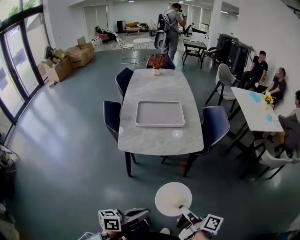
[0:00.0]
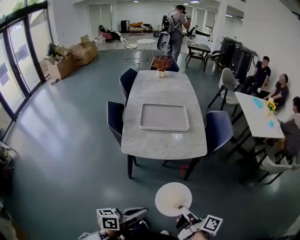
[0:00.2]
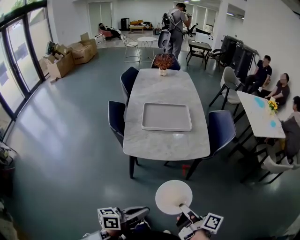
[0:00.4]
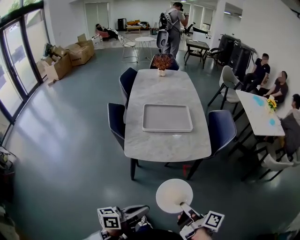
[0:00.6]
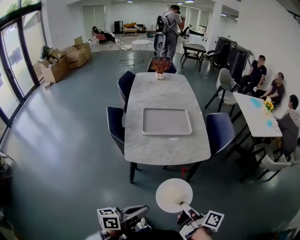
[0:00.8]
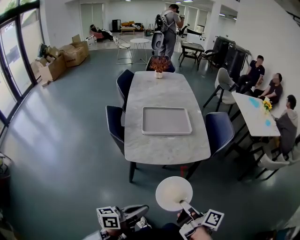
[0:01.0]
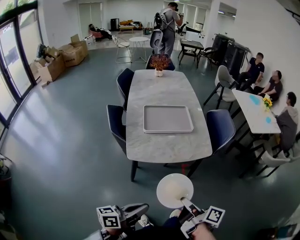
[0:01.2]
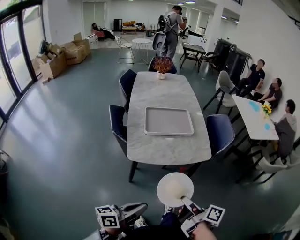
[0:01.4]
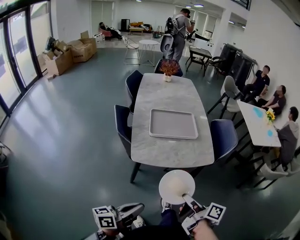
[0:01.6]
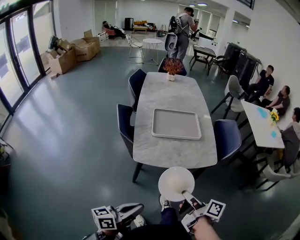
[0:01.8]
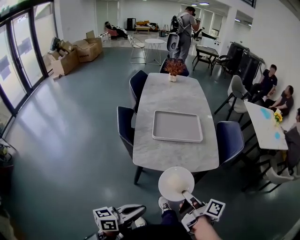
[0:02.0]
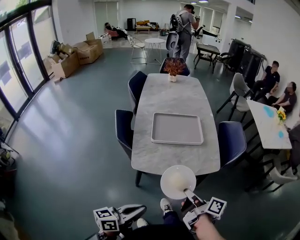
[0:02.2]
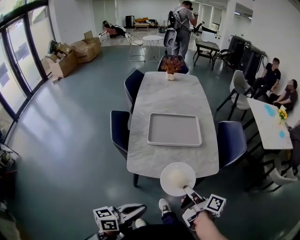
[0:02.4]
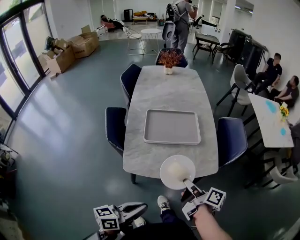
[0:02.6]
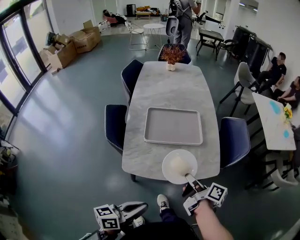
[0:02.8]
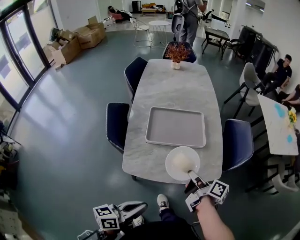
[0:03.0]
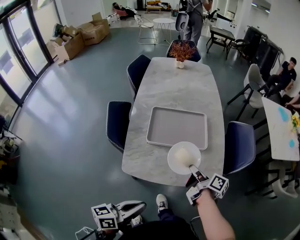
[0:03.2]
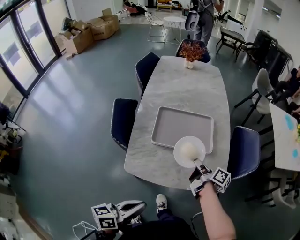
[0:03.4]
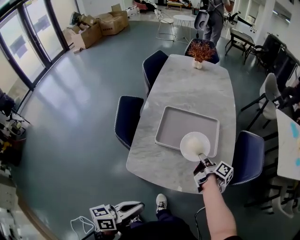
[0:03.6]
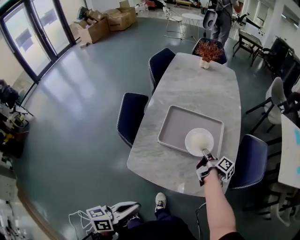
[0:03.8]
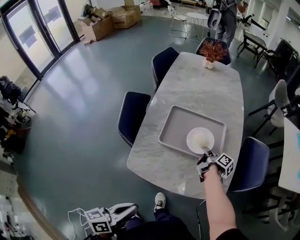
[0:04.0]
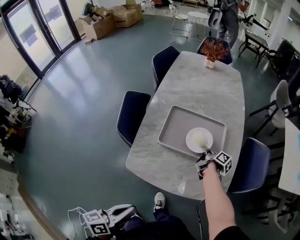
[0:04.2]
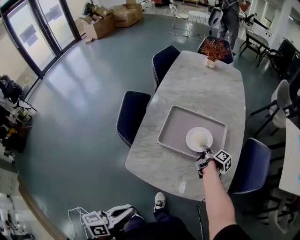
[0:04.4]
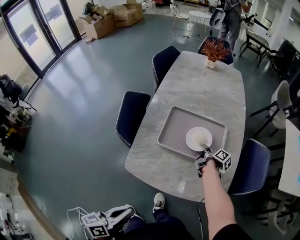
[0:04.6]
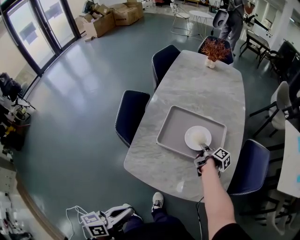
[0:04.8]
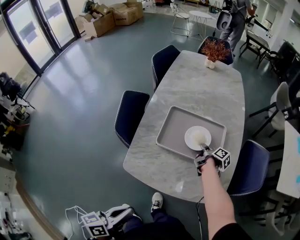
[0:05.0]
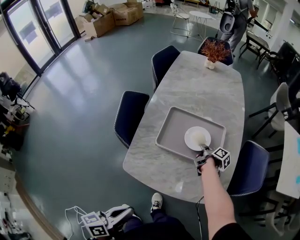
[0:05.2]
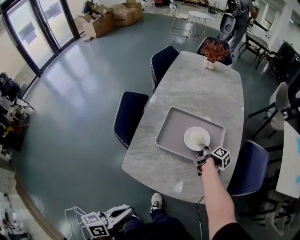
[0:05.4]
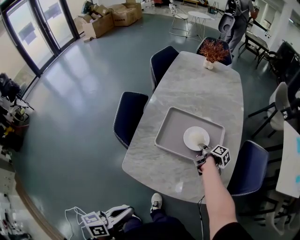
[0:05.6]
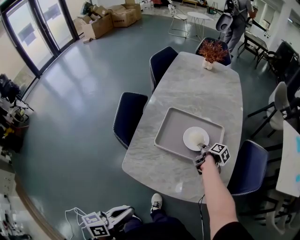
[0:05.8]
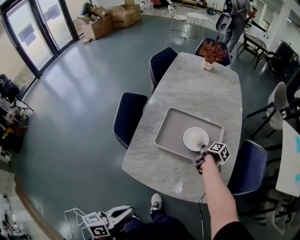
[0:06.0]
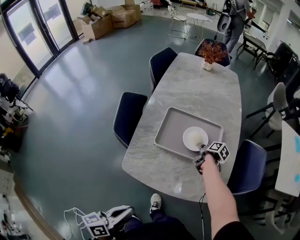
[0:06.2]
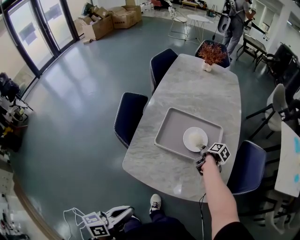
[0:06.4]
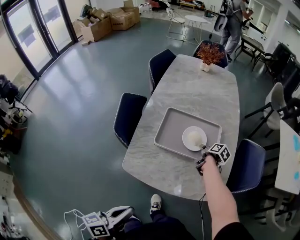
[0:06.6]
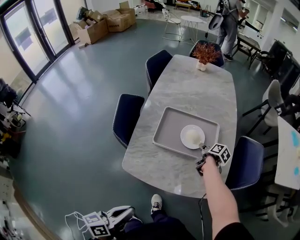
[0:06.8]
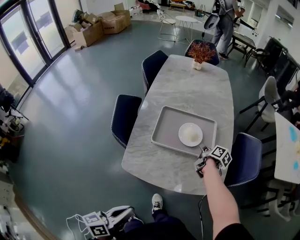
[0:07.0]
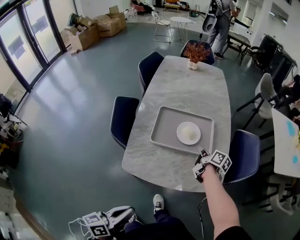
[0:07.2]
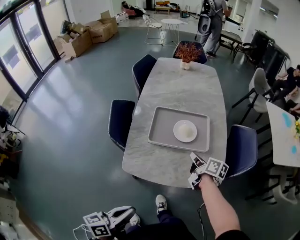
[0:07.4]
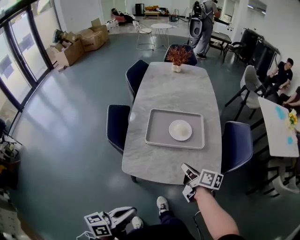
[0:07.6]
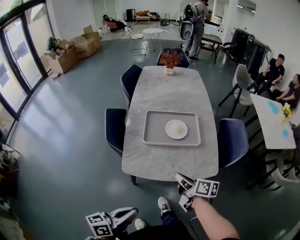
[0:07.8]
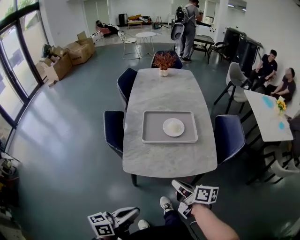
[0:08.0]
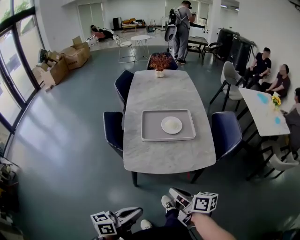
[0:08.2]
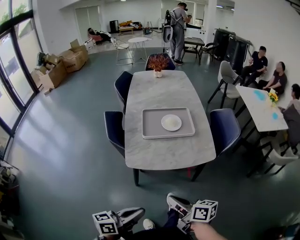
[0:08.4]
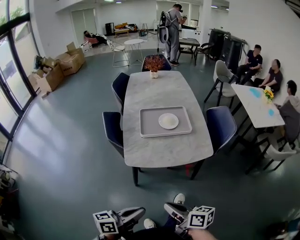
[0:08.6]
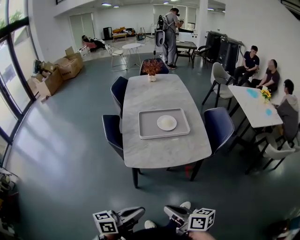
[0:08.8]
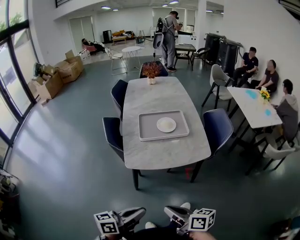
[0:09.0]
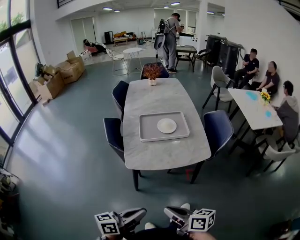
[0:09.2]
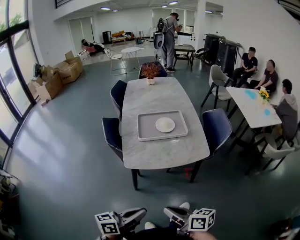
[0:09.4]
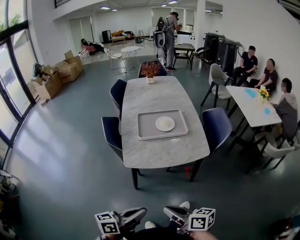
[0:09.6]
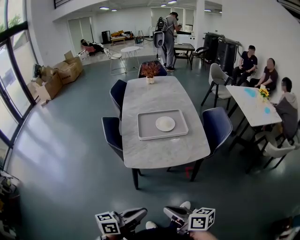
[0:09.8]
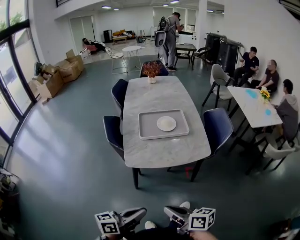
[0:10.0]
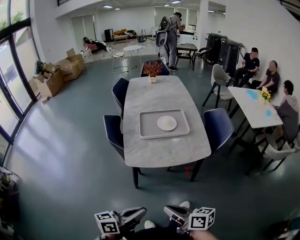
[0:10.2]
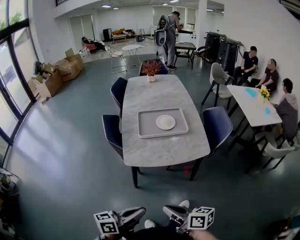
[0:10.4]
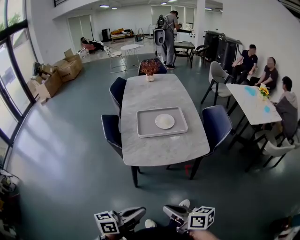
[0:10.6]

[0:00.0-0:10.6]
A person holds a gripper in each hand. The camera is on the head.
0:00.0 to 0:01.6: The left gripper shifts by some 15 cm.
0:01.6 to 0:03.0: The left gripper ends up roughly 15 cm from where it was.
0:03.0 to 0:04.6: The left gripper rotates about 30 degrees.
0:06.0 to 0:07.6: The left gripper ends up about 5 cm from where it was.
0:07.6 to 0:09.0: The left gripper shifts by roughly 15 cm.

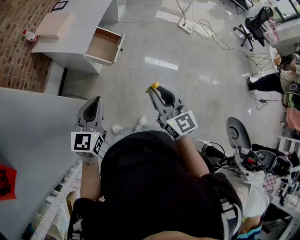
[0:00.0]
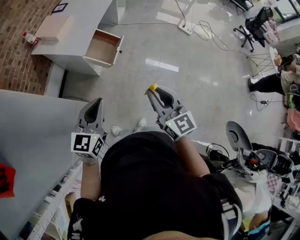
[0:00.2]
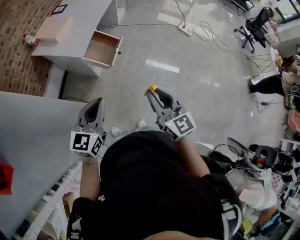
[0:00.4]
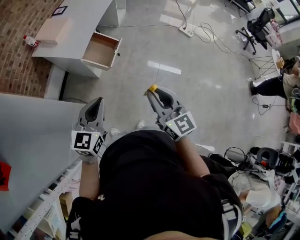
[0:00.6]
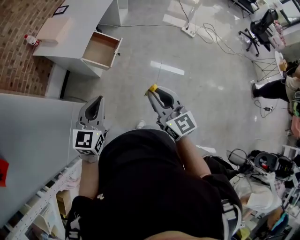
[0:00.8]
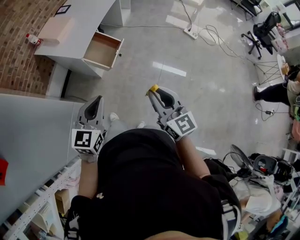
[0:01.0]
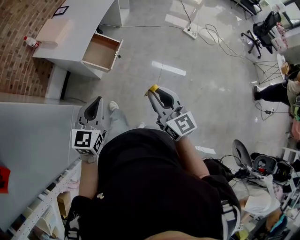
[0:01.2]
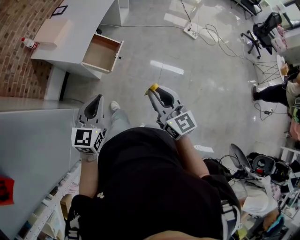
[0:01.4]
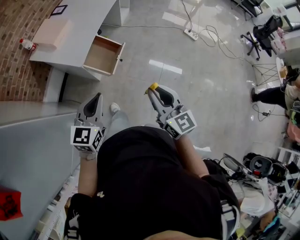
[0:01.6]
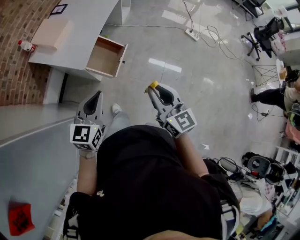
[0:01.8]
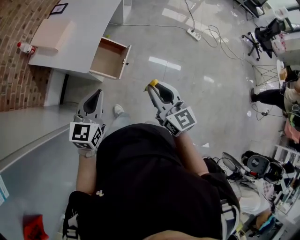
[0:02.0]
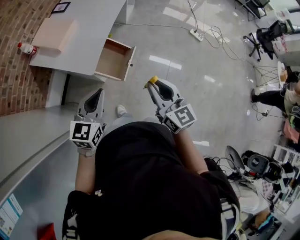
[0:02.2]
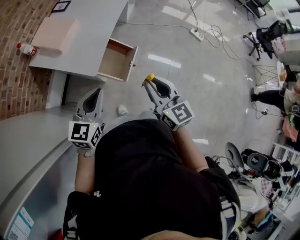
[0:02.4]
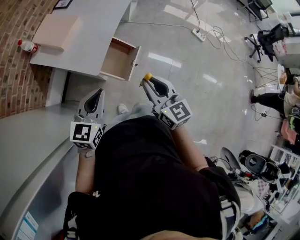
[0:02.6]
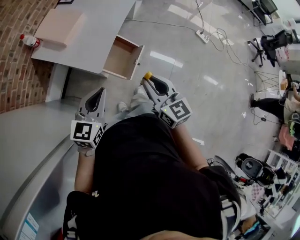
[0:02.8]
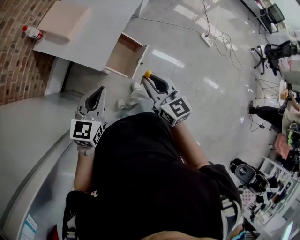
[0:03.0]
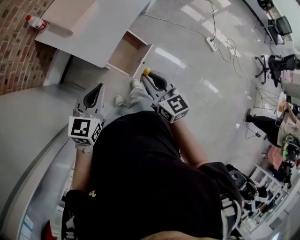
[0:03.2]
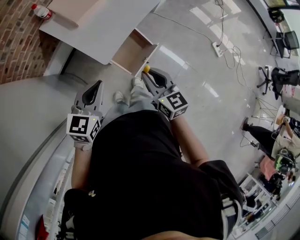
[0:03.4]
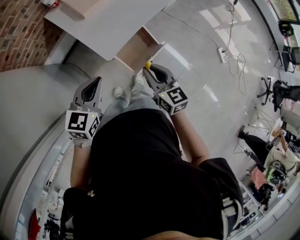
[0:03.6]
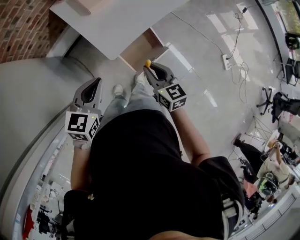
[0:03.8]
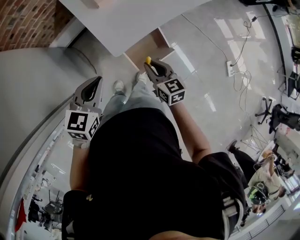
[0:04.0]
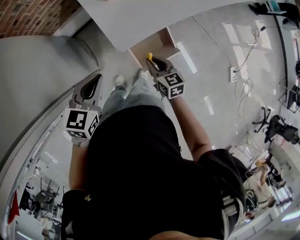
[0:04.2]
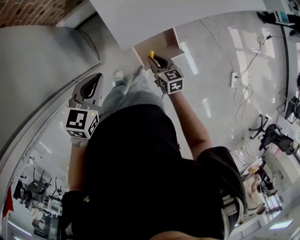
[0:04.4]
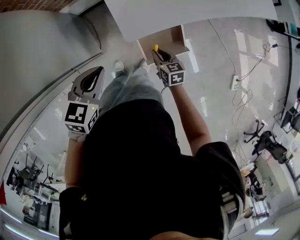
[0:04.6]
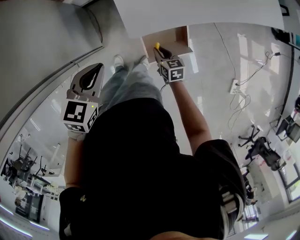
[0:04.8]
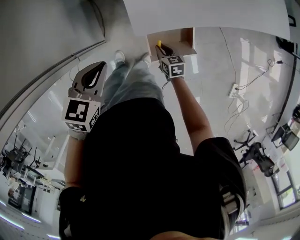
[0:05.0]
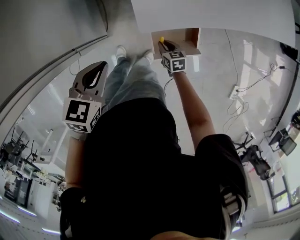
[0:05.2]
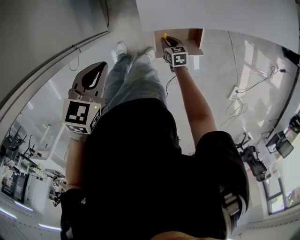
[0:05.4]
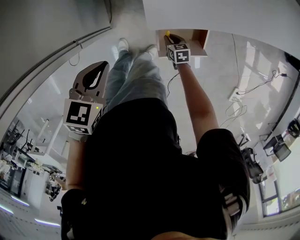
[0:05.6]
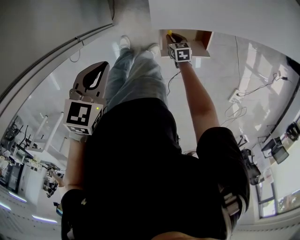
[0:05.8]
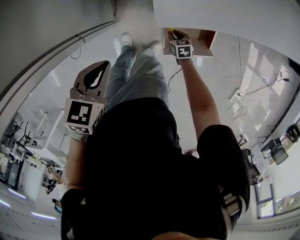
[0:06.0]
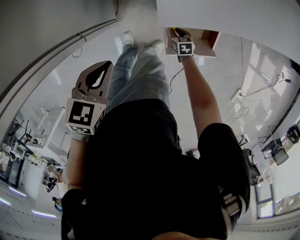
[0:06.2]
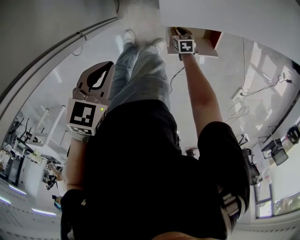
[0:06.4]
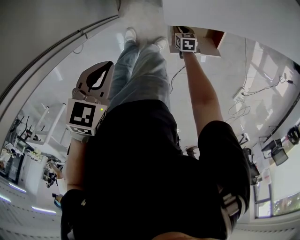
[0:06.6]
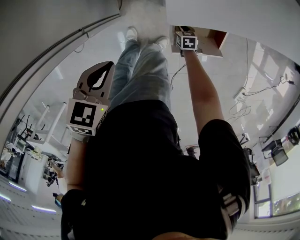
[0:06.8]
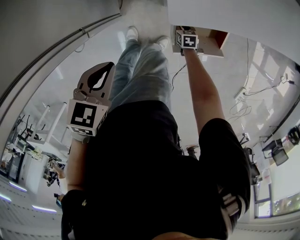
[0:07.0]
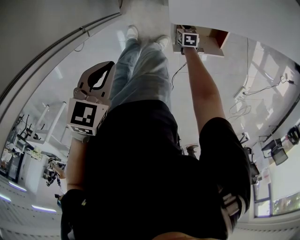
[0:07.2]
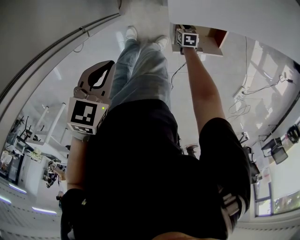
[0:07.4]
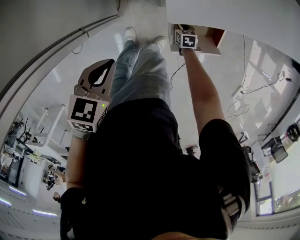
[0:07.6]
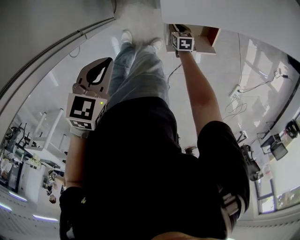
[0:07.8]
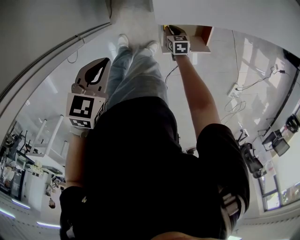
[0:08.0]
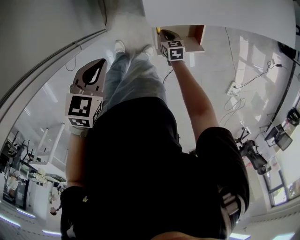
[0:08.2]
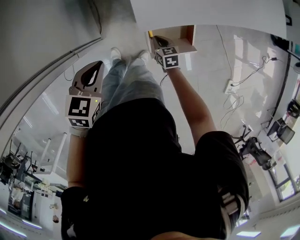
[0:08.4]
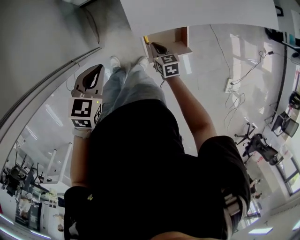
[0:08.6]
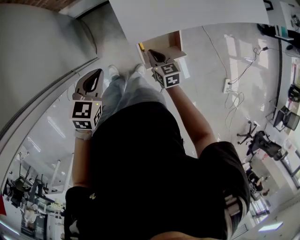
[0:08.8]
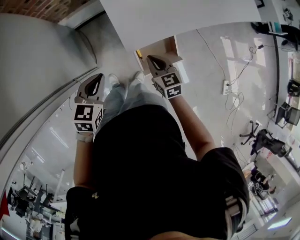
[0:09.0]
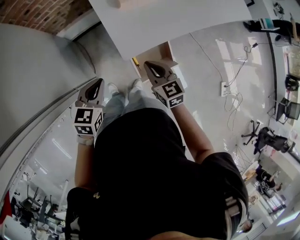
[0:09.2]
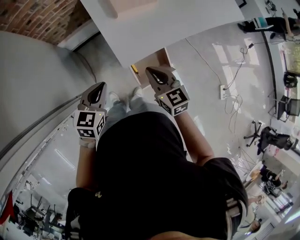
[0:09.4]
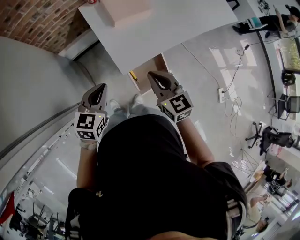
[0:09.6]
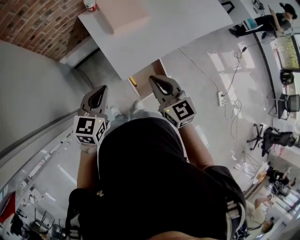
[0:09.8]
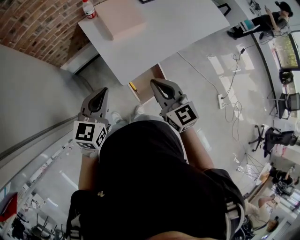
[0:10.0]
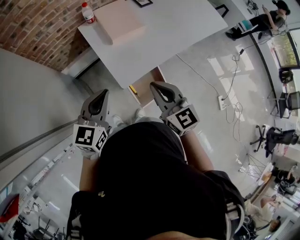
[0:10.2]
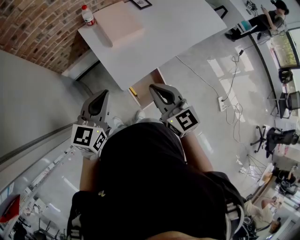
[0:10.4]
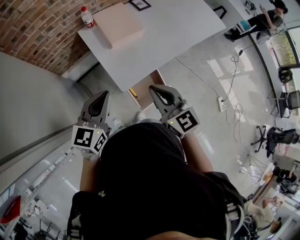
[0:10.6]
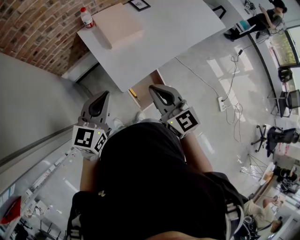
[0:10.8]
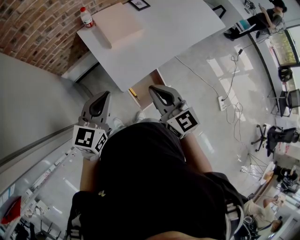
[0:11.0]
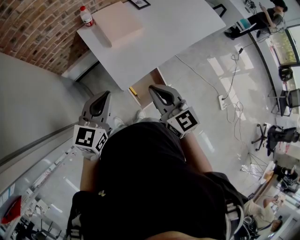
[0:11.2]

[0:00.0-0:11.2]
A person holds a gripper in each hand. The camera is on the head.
0:00.0 to 0:01.6: The right gripper moves forward, about 10 cm; the left gripper shifts about 15 cm forward and to the right.
0:01.6 to 0:03.2: Both grippers travel together forward and to the left, approximately 30 cm.
0:03.2 to 0:04.8: The left gripper heads downward, covering about 10 cm, and changes its angle by some 40 degrees, while the right gripper moves downward, some 30 cm, and turns by about 50 degrees.
0:04.8 to 0:06.4: The left gripper is displaced downward and to the left by approximately 10 cm, while the right gripper heads downward, covering roughly 20 cm.
0:06.4 to 0:08.0: The right gripper travels upward by about 5 cm.
0:08.0 to 0:09.6: The right gripper heads upward, covering some 50 cm, and points its fingers some 30 degrees further upward; the left gripper is displaced upward, forward and to the right by roughly 20 cm, and turns by some 20 degrees.
0:09.6 to 0:11.2: The two grippers go approximately 10 cm upward.

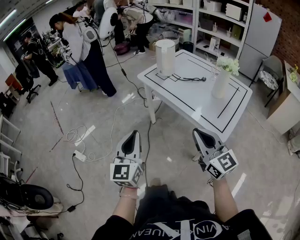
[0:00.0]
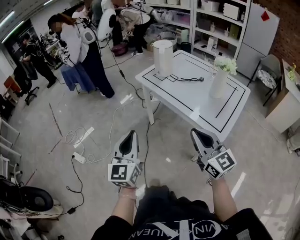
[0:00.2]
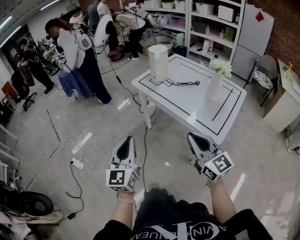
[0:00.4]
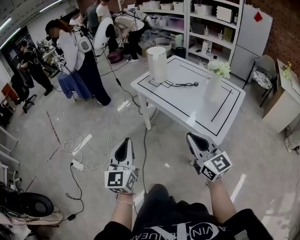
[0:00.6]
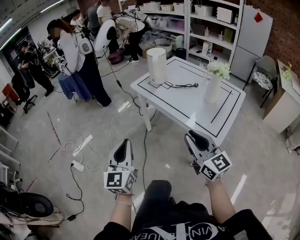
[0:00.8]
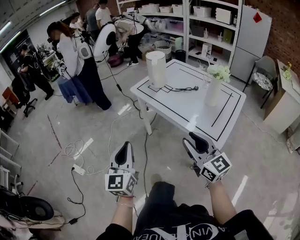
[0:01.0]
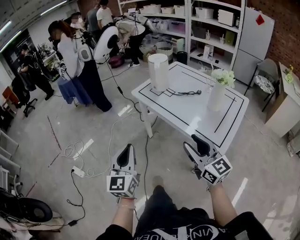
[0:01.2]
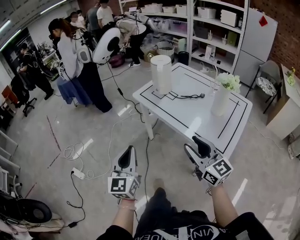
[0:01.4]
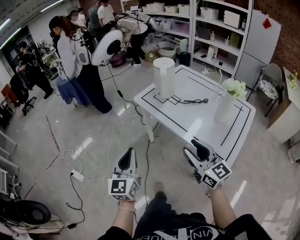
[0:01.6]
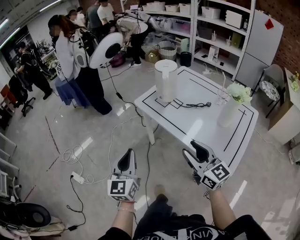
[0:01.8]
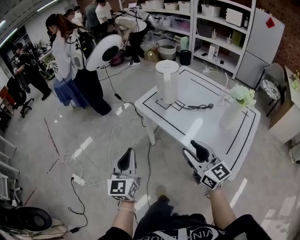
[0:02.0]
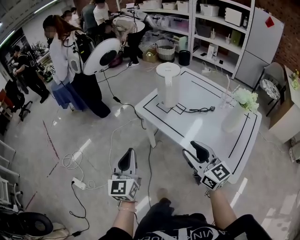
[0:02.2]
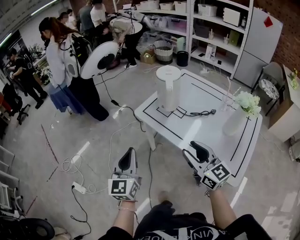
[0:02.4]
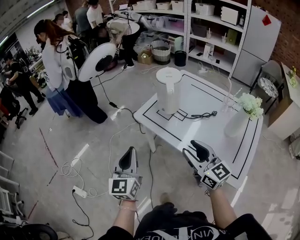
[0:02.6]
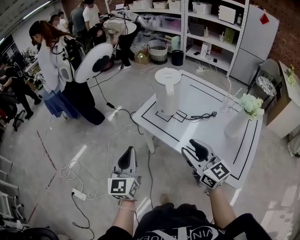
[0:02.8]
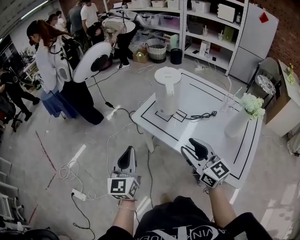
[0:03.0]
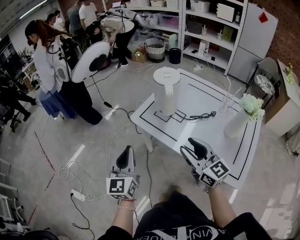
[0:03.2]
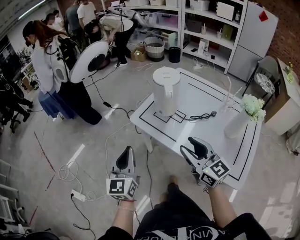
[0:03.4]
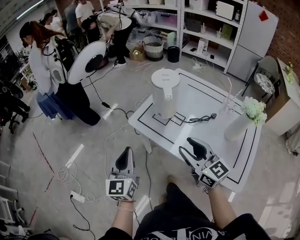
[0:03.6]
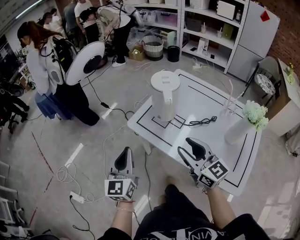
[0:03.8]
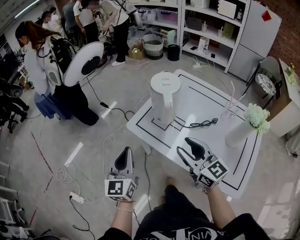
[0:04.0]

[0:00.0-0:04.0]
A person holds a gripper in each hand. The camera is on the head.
0:00.0 to 0:01.4: Both grippers move forward, about 10 cm. The right gripper opens up.
0:01.4 to 0:02.6: Both grippers move forward, roughly 20 cm.
0:02.6 to 0:04.0: Both grippers travel together forward, some 10 cm.
